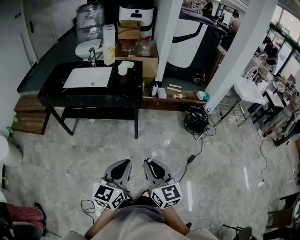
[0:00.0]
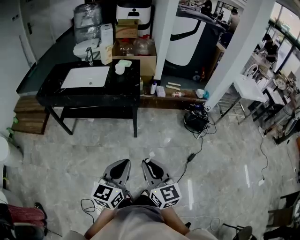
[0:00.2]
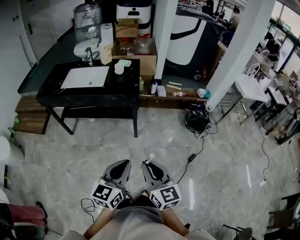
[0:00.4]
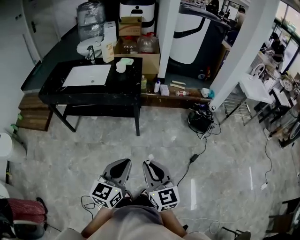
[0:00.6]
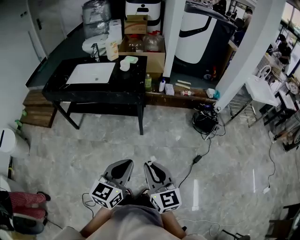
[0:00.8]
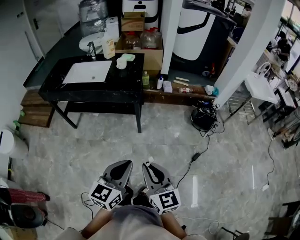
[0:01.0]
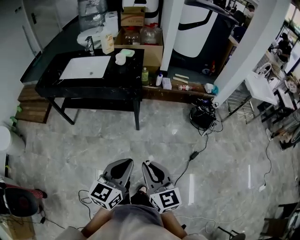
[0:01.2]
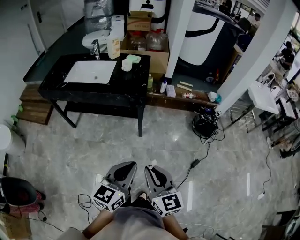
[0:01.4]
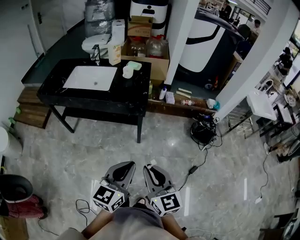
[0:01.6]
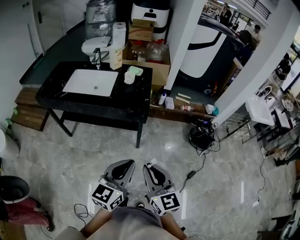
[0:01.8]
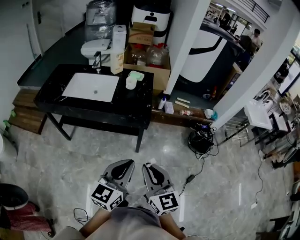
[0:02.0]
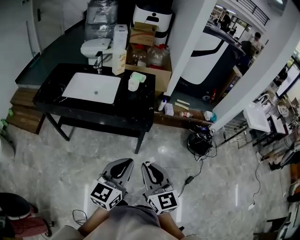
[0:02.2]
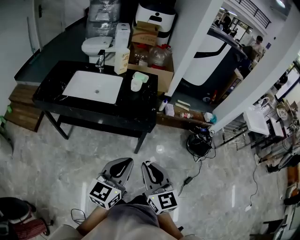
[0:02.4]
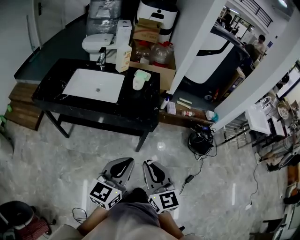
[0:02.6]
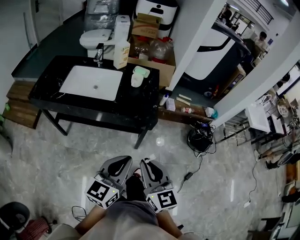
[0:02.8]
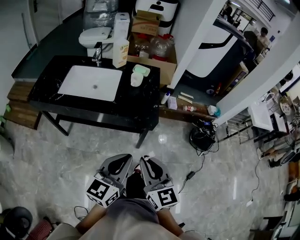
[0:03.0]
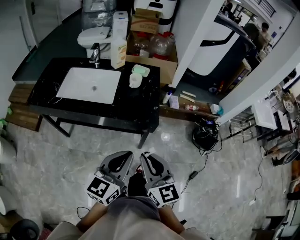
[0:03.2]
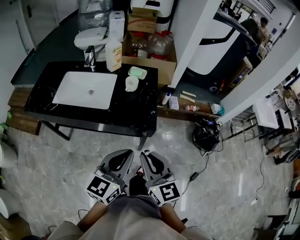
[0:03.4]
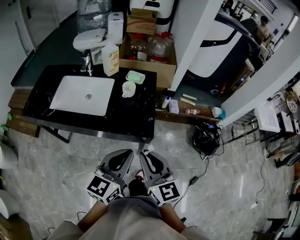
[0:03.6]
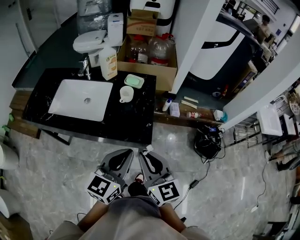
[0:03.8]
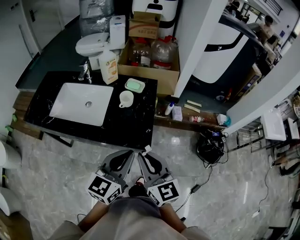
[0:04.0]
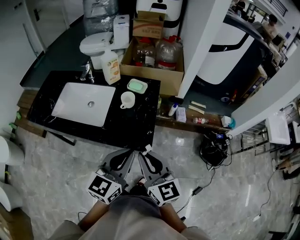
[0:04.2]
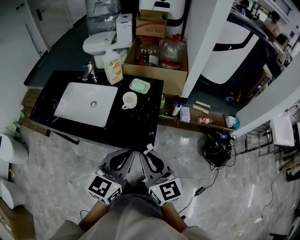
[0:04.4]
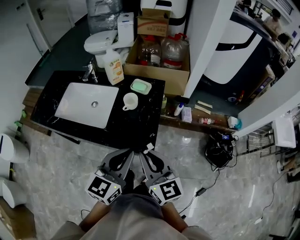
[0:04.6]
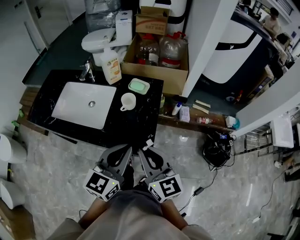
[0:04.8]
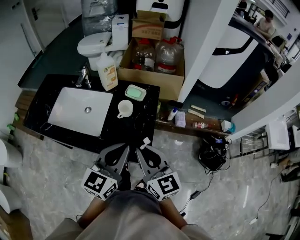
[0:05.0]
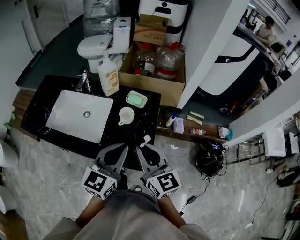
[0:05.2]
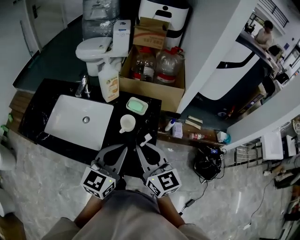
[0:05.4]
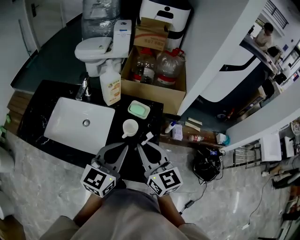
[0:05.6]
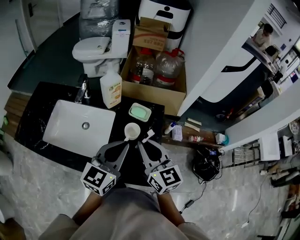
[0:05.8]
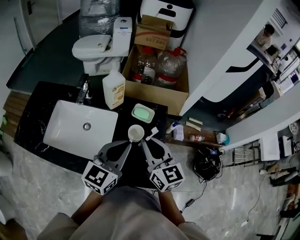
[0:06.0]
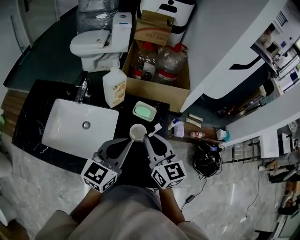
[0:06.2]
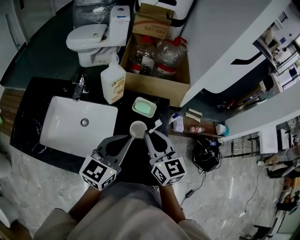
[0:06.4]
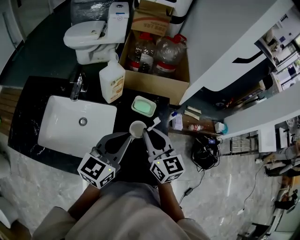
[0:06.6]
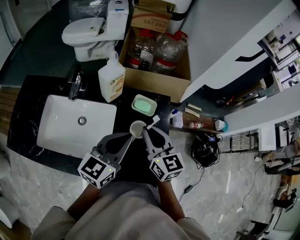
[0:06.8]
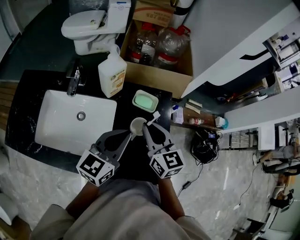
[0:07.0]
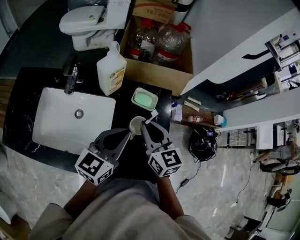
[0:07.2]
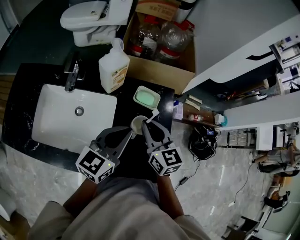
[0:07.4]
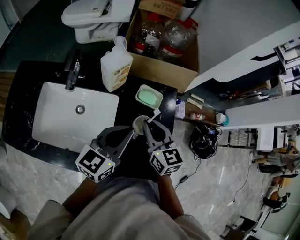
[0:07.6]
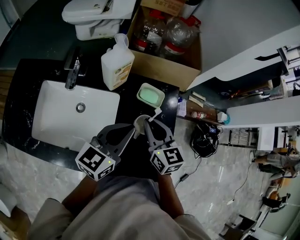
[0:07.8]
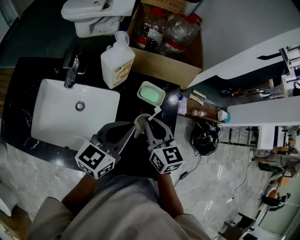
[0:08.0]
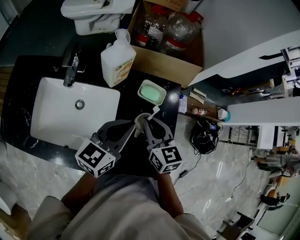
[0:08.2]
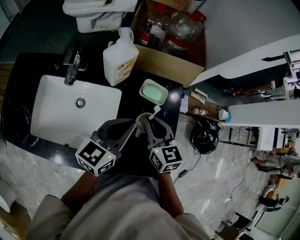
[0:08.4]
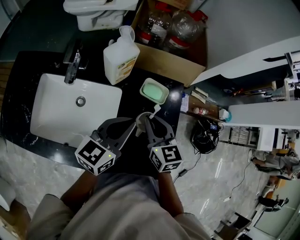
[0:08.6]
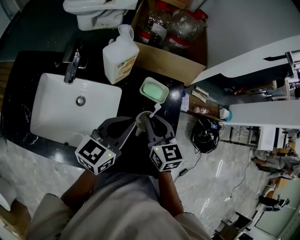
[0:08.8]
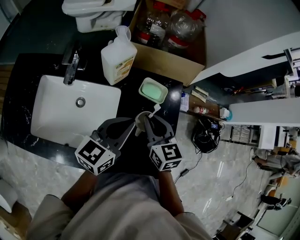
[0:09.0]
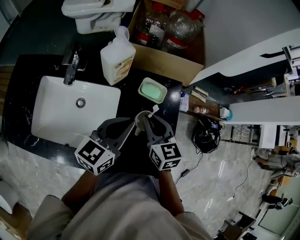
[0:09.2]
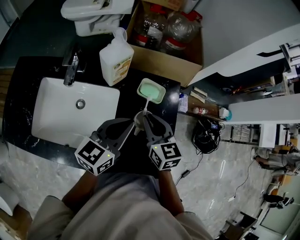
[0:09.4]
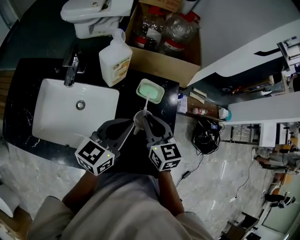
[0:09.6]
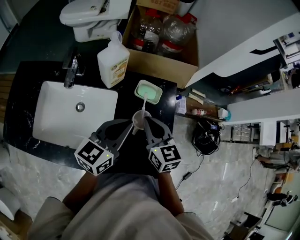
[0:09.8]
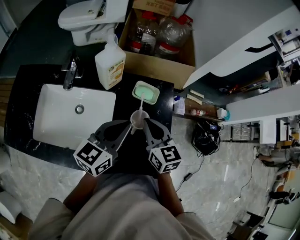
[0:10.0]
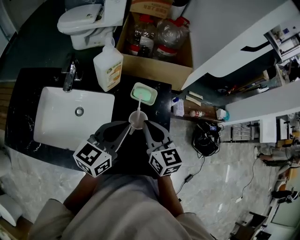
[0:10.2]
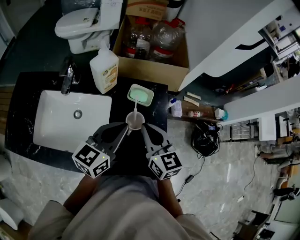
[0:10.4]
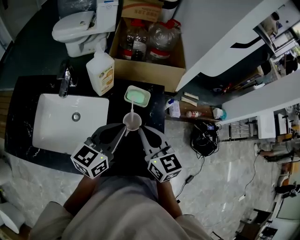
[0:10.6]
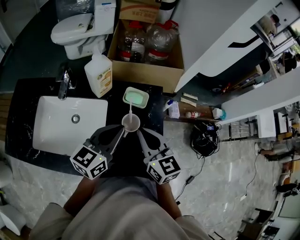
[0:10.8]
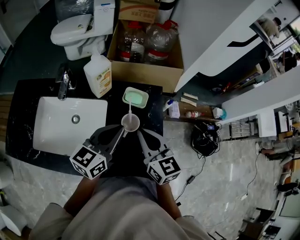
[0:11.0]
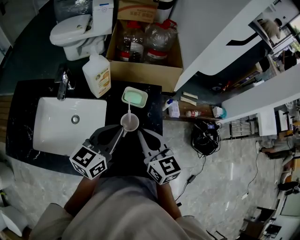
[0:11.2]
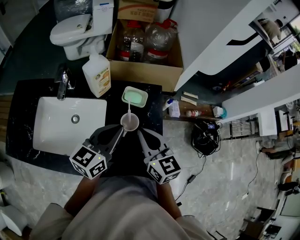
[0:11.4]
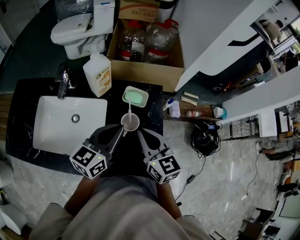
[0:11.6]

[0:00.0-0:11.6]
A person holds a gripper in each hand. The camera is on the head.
0:00.0 to 0:01.4: The left gripper heads forward and to the right, covering about 10 cm. Meanwhile the right gripper heads forward, covering approximately 5 cm.
0:01.4 to 0:02.8: The grippers both shift forward and to the left by about 25 cm.
0:02.8 to 0:04.4: The two grippers go roughly 25 cm forward.
0:04.4 to 0:05.8: The grippers both shift forward by some 20 cm.
0:05.8 to 0:07.2: Both grippers travel together forward and downward, approximately 10 cm.
0:07.2 to 0:08.8: The right gripper is displaced downward by roughly 5 cm.
0:08.8 to 0:10.2: The right gripper ends up about 5 cm from where it was.
0:10.2 to 0:11.6: There are only small adjustments of the grippers.

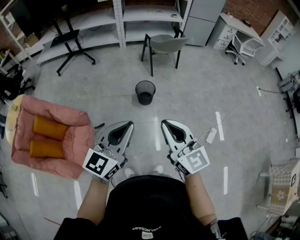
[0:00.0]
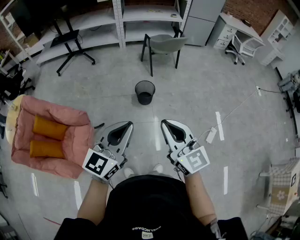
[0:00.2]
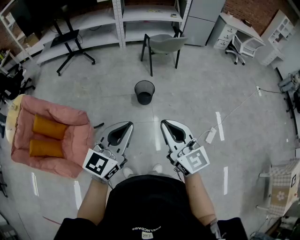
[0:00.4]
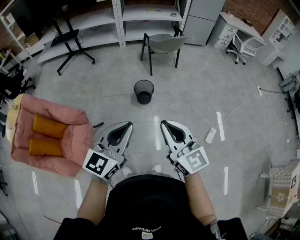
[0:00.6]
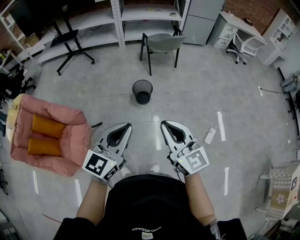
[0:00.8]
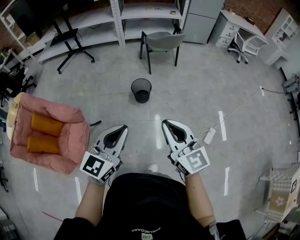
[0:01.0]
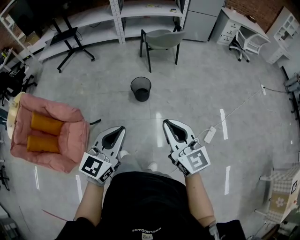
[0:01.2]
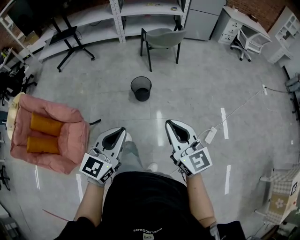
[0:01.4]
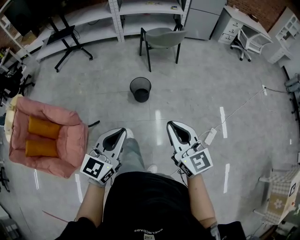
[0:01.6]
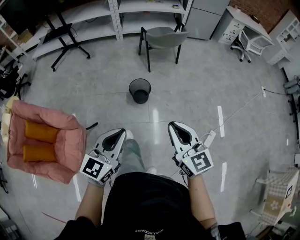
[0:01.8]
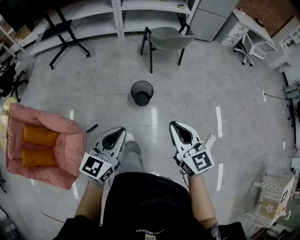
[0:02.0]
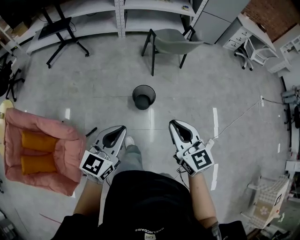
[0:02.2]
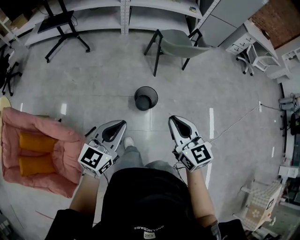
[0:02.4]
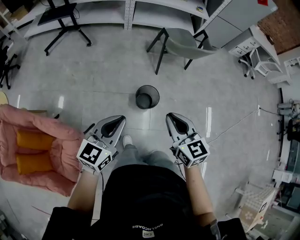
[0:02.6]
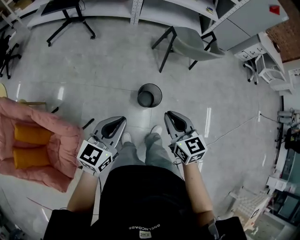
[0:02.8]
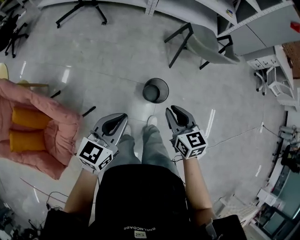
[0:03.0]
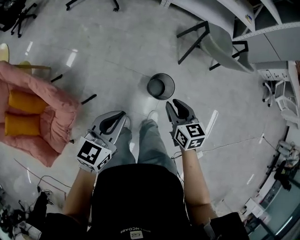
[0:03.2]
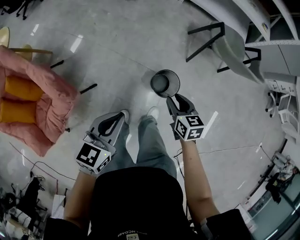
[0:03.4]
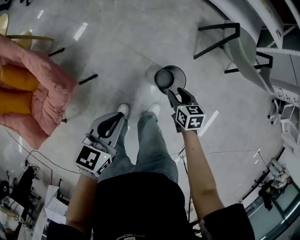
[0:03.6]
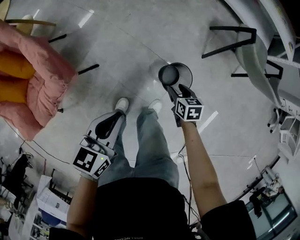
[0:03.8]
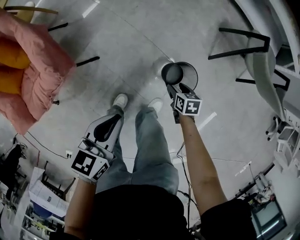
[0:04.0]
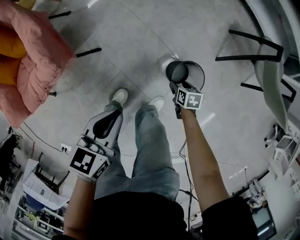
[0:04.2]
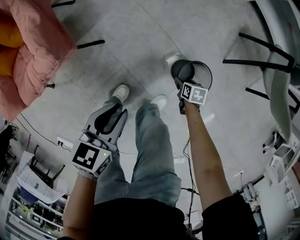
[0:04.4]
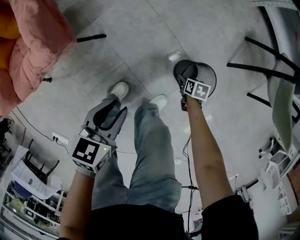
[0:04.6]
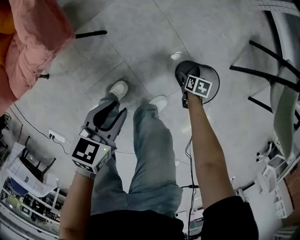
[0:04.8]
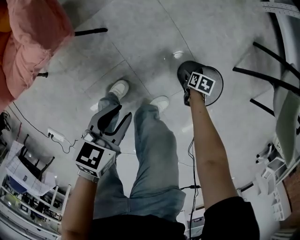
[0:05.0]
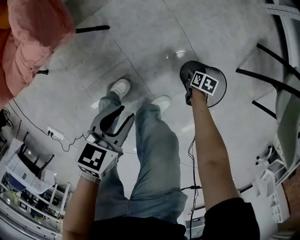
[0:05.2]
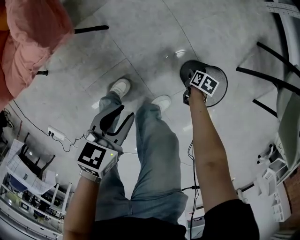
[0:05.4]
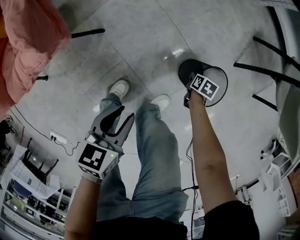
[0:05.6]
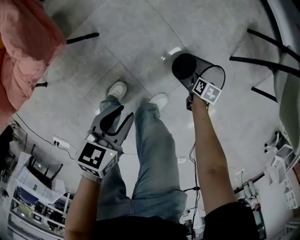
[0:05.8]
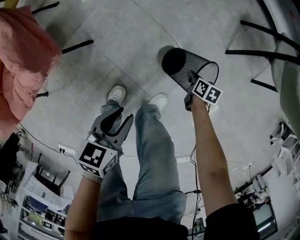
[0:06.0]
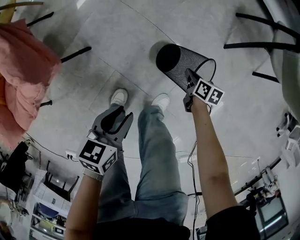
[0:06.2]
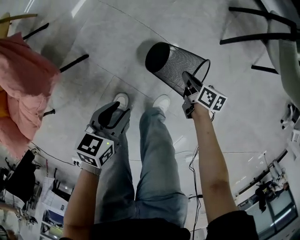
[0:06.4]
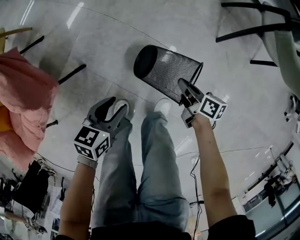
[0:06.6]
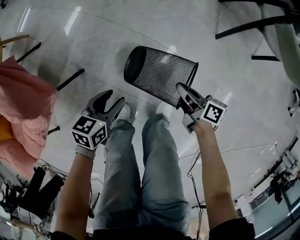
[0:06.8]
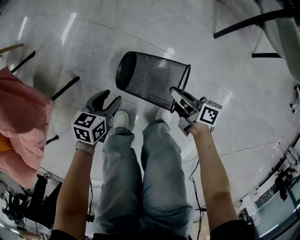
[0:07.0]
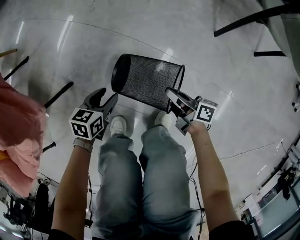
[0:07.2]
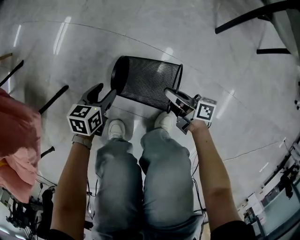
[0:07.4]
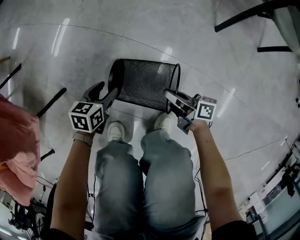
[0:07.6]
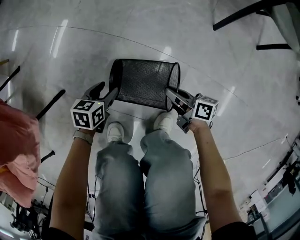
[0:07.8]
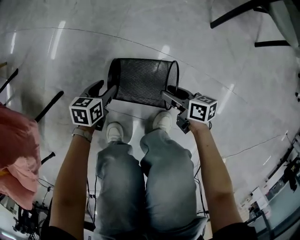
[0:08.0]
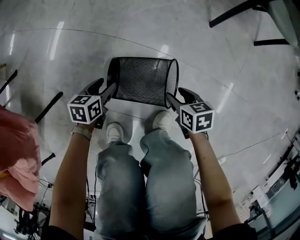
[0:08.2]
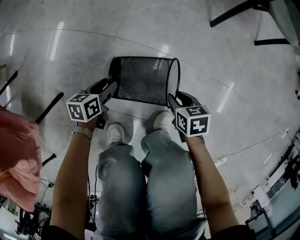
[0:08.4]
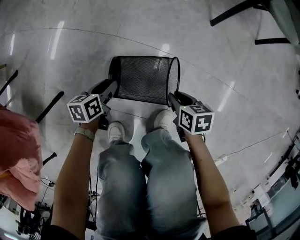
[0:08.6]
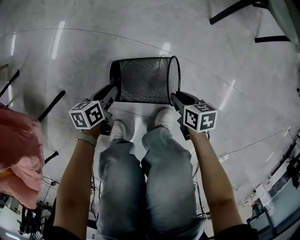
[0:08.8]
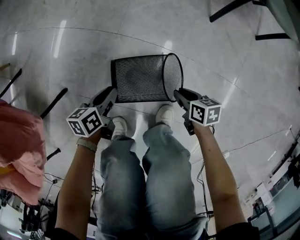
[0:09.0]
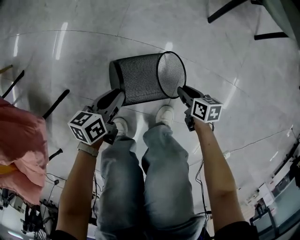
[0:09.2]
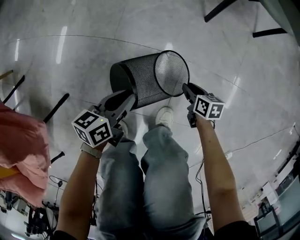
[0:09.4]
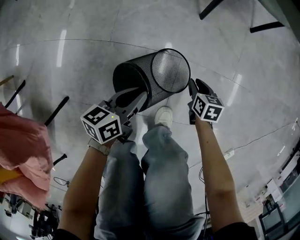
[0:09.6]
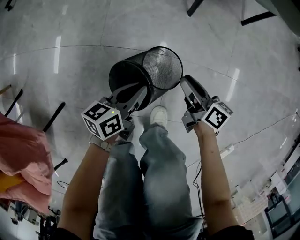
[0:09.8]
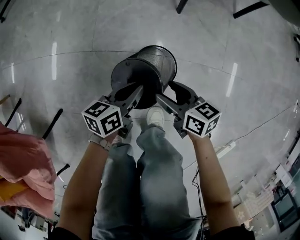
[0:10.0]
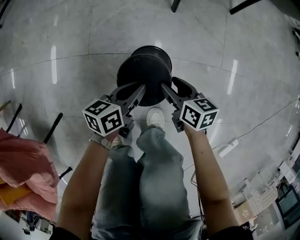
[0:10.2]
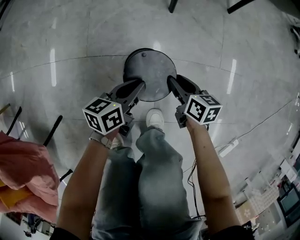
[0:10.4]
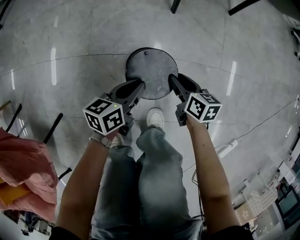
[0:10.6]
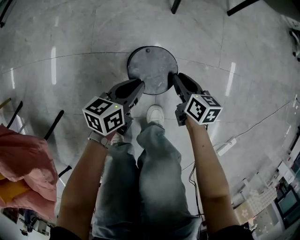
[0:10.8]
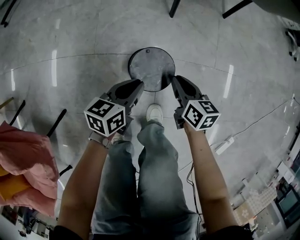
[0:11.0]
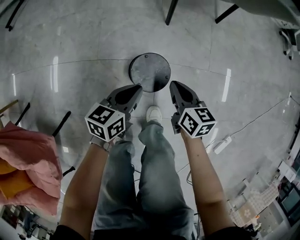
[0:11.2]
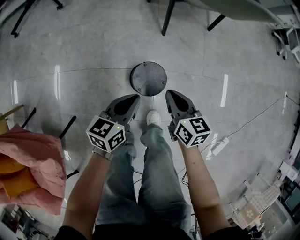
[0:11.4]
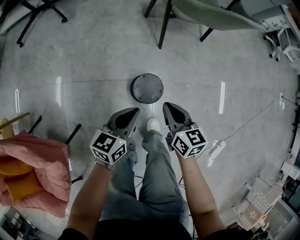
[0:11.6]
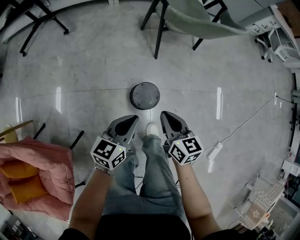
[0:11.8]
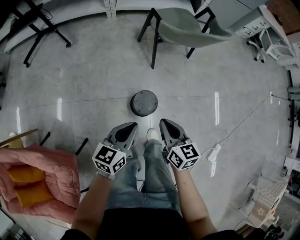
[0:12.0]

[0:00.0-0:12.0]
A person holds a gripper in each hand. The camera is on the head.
0:00.0 to 0:01.6: The left gripper heads downward and to the right, covering roughly 10 cm; the right gripper is displaced to the right and forward by approximately 15 cm.
0:01.6 to 0:03.0: The left gripper travels forward and to the left by some 40 cm, while the right gripper shifts some 50 cm forward, to the left and downward, and swivels roughly 30 degrees.
0:03.0 to 0:04.4: The right gripper travels downward by about 60 cm, angles its fingers downward, by approximately 40 degrees, and opens its fingers; the left gripper is displaced downward by about 30 cm, and rotates some 50 degrees.
0:04.4 to 0:06.0: The right gripper moves about 10 cm downward and comes back, and closes. Meanwhile the left gripper travels downward by approximately 10 cm.
0:06.0 to 0:07.6: The right gripper travels upward and back again, about 10 cm each way, and angles its fingers upward, by about 50 degrees. Meanwhile the left gripper shifts about 35 cm downward and forward, and opens its fingers.
0:07.6 to 0:09.0: The right gripper moves to the right, approximately 5 cm, angles its fingers downward, by some 40 degrees, and opens, then closes once more, while the left gripper turns by about 20 degrees, and closes up.
0:09.0 to 0:10.4: The left gripper shifts by about 25 cm, and turns by some 30 degrees; the right gripper moves some 15 cm, turns by some 30 degrees, and opens, then closes again.
0:10.4 to 0:12.0: The grippers both shift upward by roughly 40 cm. The left gripper rotates approximately 30 degrees. The right gripper turns by roughly 30 degrees, and closes up.
